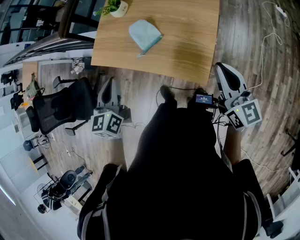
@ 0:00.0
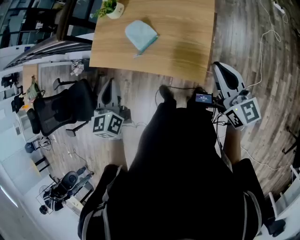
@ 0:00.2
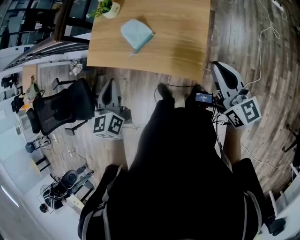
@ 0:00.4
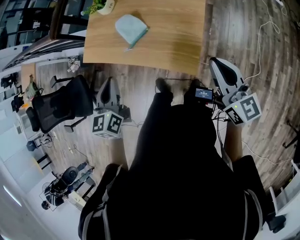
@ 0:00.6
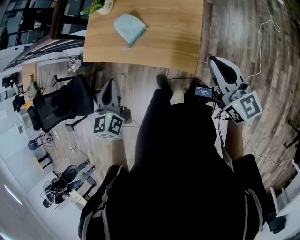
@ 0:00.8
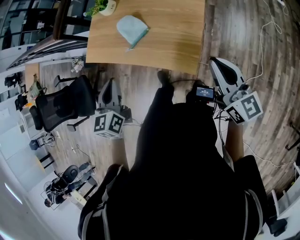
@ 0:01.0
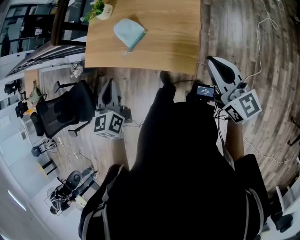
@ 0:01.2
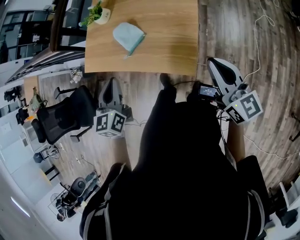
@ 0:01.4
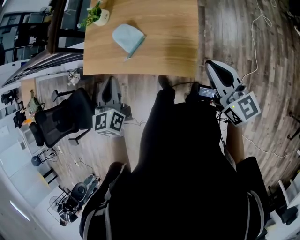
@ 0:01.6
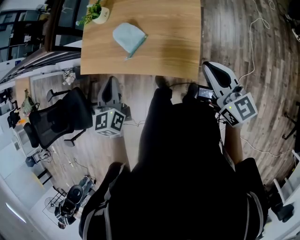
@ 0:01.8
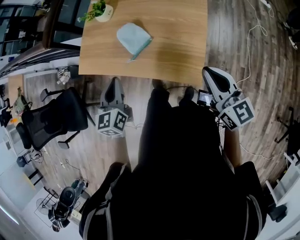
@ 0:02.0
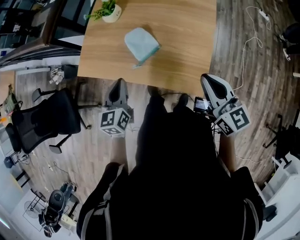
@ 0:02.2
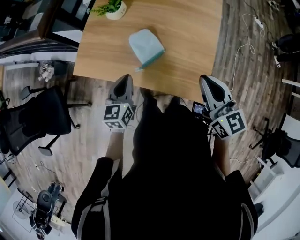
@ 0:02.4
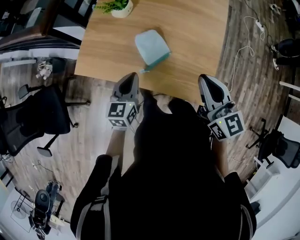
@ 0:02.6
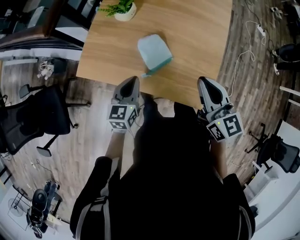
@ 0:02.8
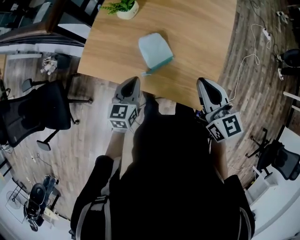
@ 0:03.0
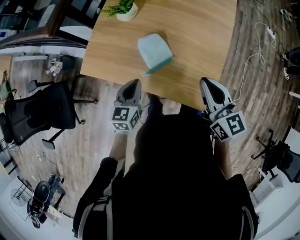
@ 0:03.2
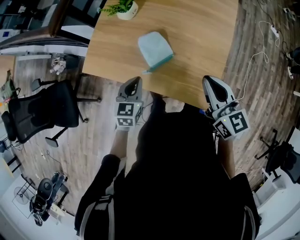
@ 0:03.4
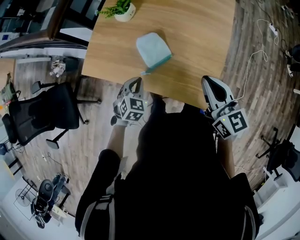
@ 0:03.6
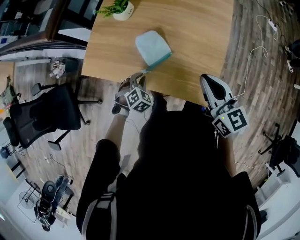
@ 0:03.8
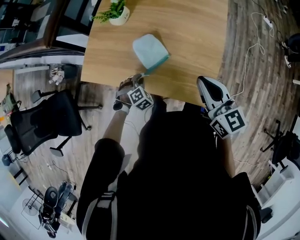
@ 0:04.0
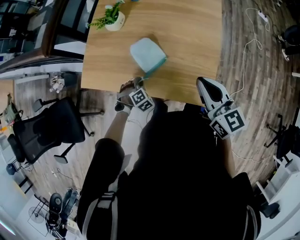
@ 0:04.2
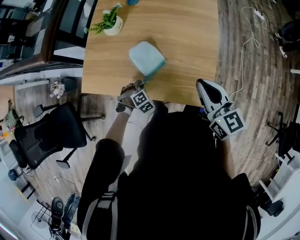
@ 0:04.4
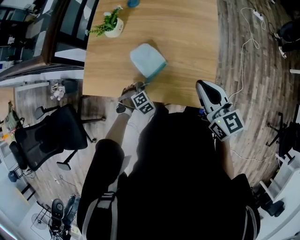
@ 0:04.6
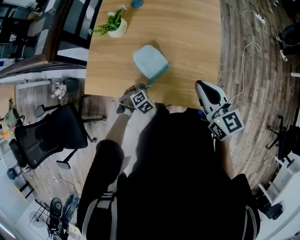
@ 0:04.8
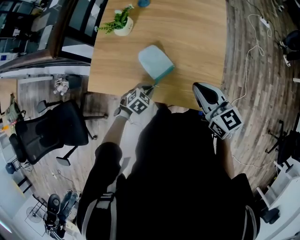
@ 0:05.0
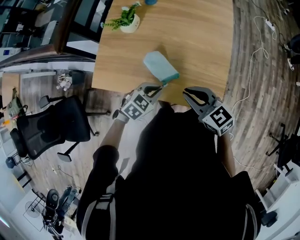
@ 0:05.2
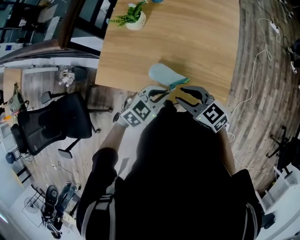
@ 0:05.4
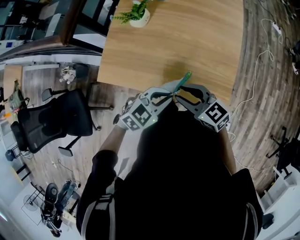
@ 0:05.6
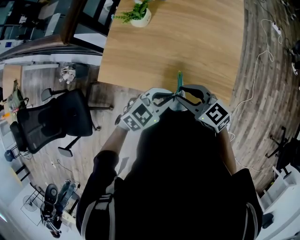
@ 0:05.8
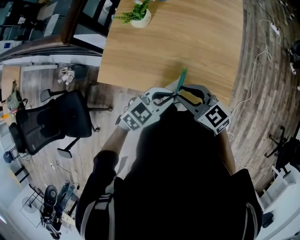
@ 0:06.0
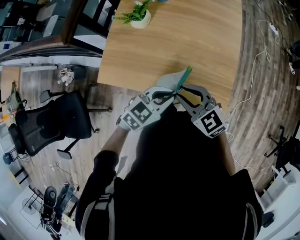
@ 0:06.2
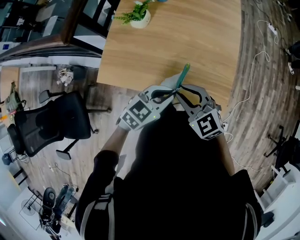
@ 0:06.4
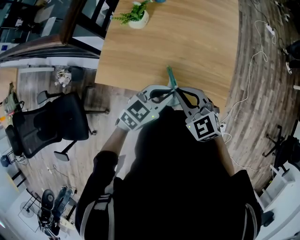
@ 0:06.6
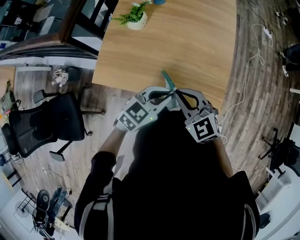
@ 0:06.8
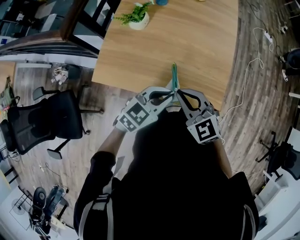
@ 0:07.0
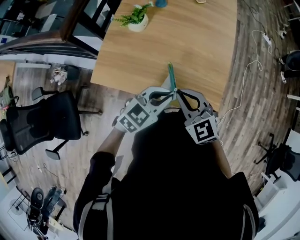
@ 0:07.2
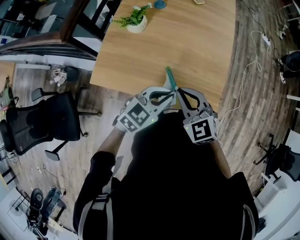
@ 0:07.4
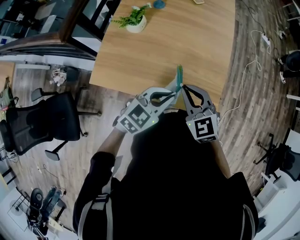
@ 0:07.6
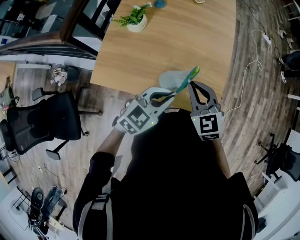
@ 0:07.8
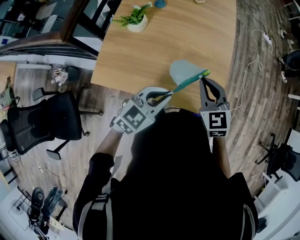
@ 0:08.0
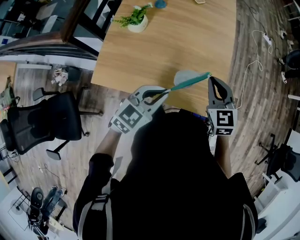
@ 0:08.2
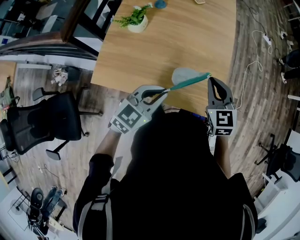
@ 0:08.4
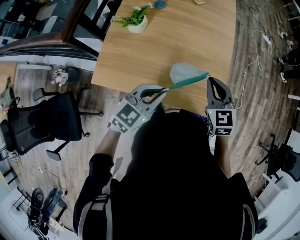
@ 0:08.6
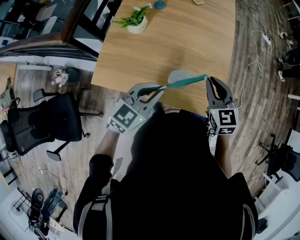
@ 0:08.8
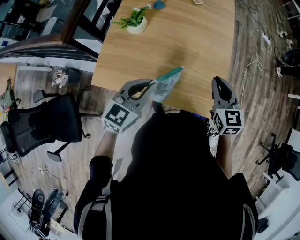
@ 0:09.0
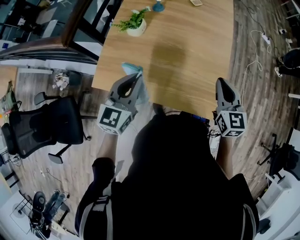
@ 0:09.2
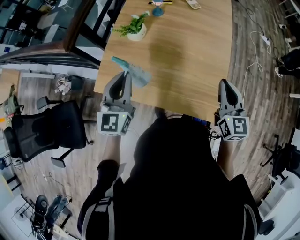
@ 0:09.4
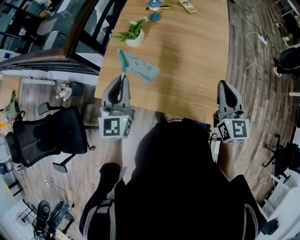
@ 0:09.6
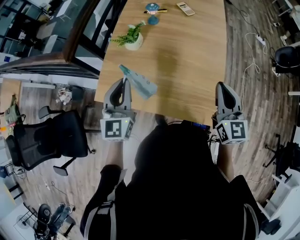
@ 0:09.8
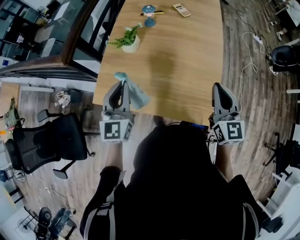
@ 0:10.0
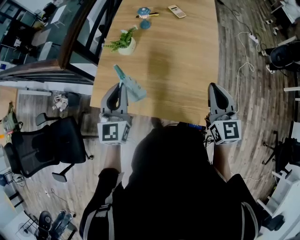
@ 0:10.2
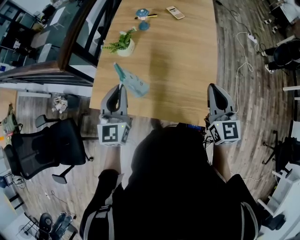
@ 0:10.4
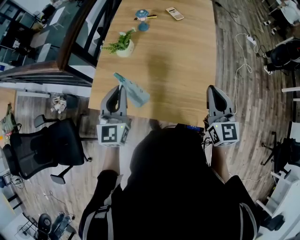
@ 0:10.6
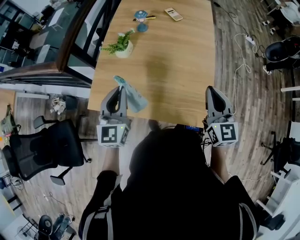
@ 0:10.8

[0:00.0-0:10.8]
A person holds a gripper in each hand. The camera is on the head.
0:00.0 to 0:01.6: The left gripper heads to the right, covering roughly 5 cm. Meanwhile the right gripper changes place by about 5 cm.
0:01.6 to 0:03.0: The right gripper travels to the left and forward by roughly 30 cm. The left gripper shifts approximately 20 cm downward, forward and to the left.
0:03.0 to 0:04.6: The left gripper shifts roughly 20 cm downward, and rolls clockwise, seen from behind, by about 70 degrees.
0:04.6 to 0:06.2: The left gripper shifts some 25 cm upward, and tips its fingers upward by roughly 40 degrees. Meanwhile the right gripper shifts by approximately 20 cm, changes its angle by about 40 degrees, and opens.
0:06.2 to 0:07.8: The right gripper moves to the right and forward, roughly 10 cm, rotates approximately 20 degrees, and closes up.
0:07.8 to 0:09.2: The right gripper travels to the right and forward by roughly 10 cm, and swivels some 20 degrees. The left gripper travels to the left by approximately 15 cm, and swivels about 30 degrees.
0:09.2 to 0:10.8: The right gripper goes some 5 cm upward.

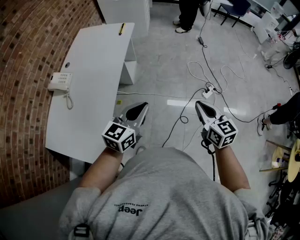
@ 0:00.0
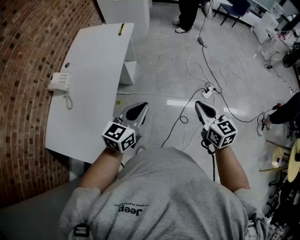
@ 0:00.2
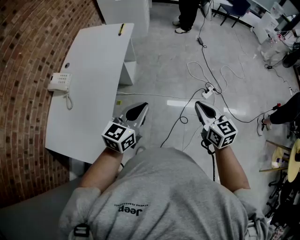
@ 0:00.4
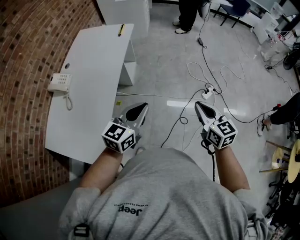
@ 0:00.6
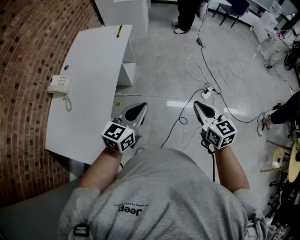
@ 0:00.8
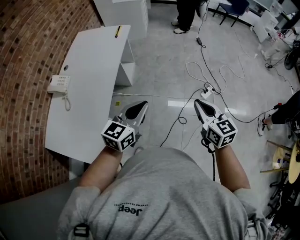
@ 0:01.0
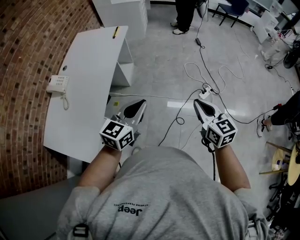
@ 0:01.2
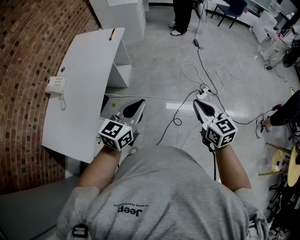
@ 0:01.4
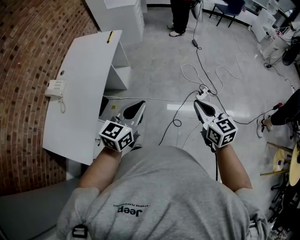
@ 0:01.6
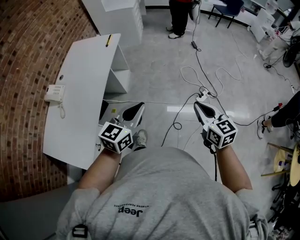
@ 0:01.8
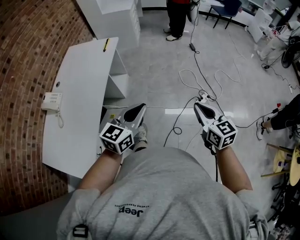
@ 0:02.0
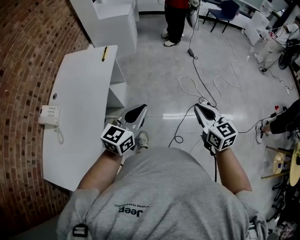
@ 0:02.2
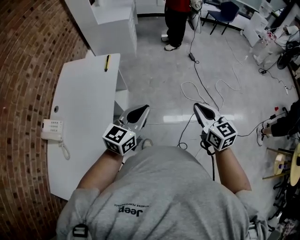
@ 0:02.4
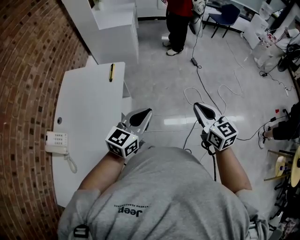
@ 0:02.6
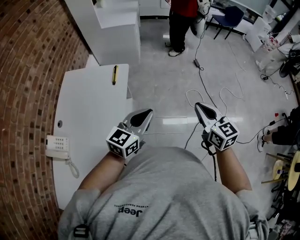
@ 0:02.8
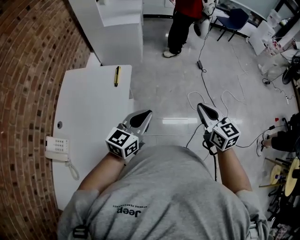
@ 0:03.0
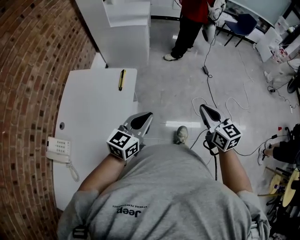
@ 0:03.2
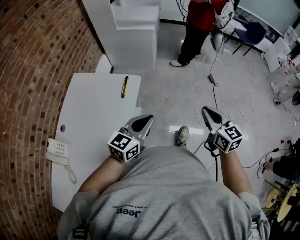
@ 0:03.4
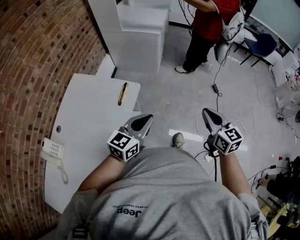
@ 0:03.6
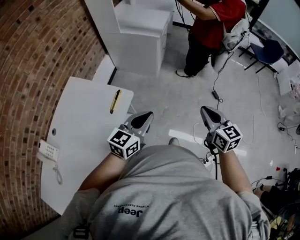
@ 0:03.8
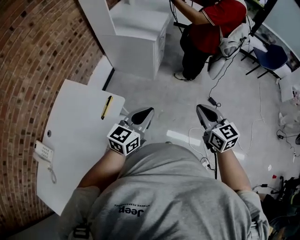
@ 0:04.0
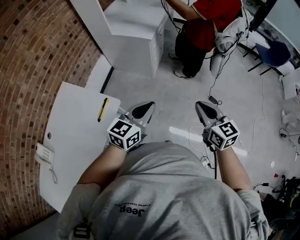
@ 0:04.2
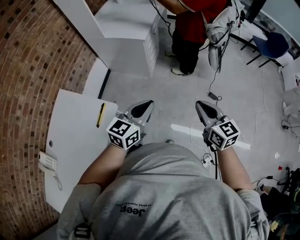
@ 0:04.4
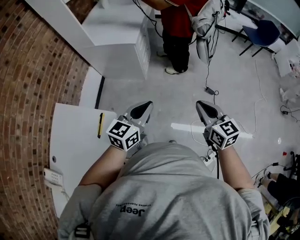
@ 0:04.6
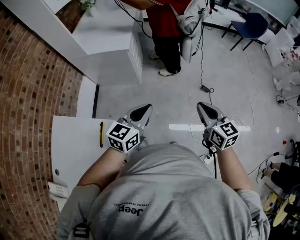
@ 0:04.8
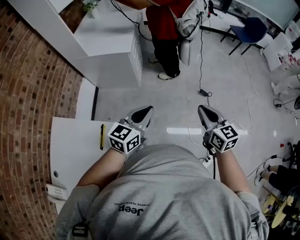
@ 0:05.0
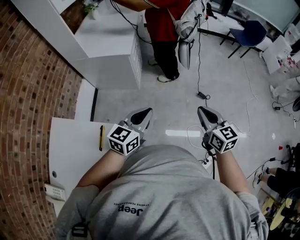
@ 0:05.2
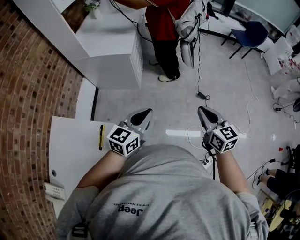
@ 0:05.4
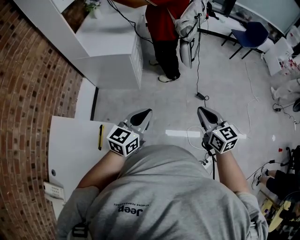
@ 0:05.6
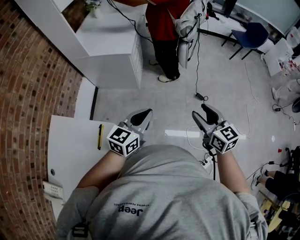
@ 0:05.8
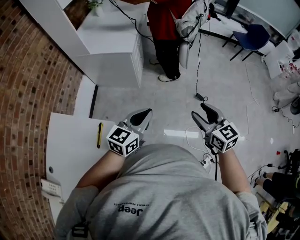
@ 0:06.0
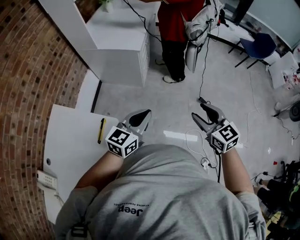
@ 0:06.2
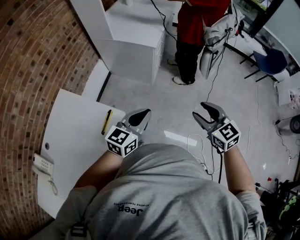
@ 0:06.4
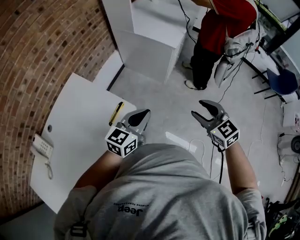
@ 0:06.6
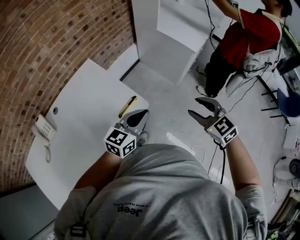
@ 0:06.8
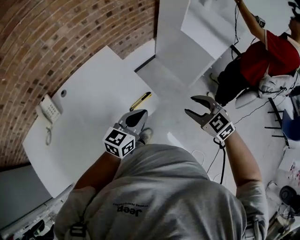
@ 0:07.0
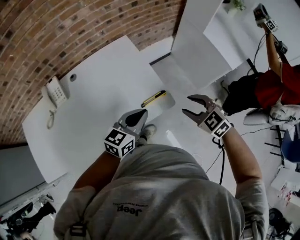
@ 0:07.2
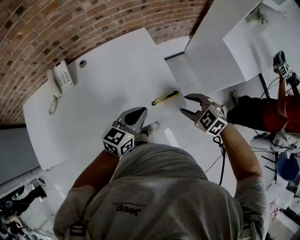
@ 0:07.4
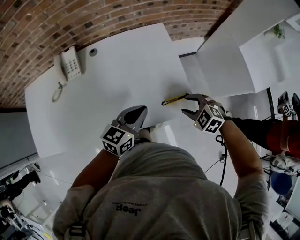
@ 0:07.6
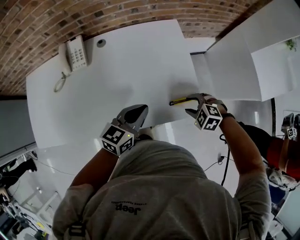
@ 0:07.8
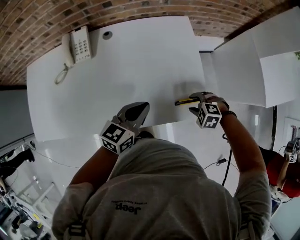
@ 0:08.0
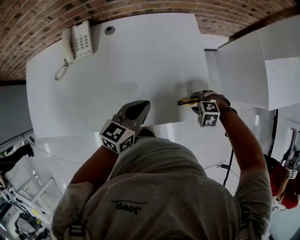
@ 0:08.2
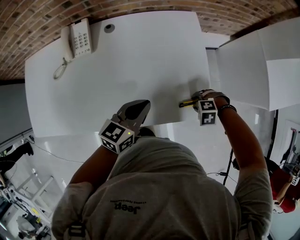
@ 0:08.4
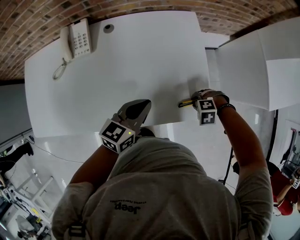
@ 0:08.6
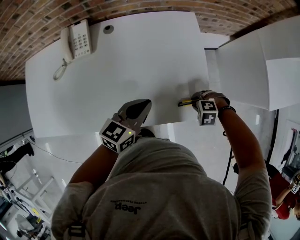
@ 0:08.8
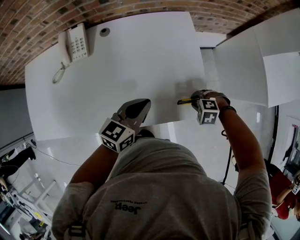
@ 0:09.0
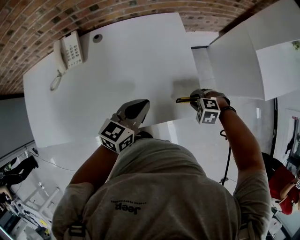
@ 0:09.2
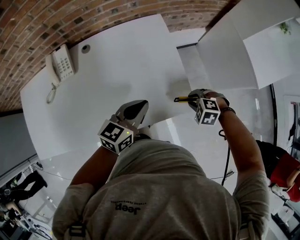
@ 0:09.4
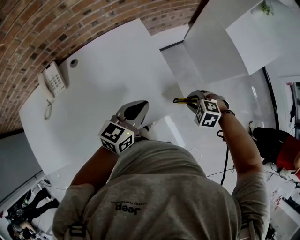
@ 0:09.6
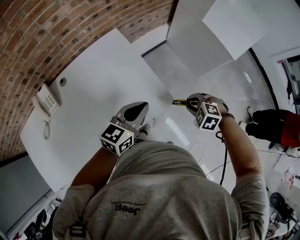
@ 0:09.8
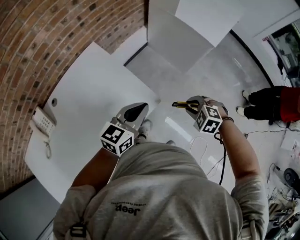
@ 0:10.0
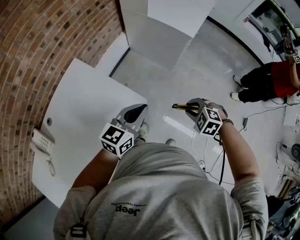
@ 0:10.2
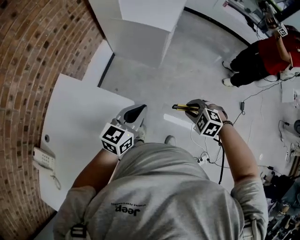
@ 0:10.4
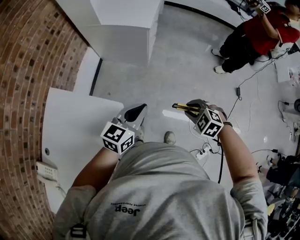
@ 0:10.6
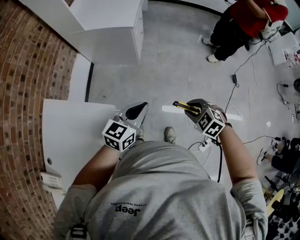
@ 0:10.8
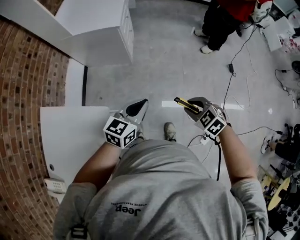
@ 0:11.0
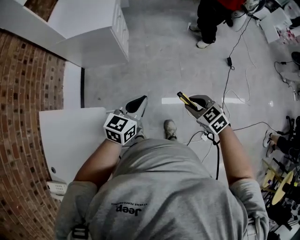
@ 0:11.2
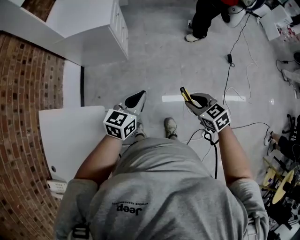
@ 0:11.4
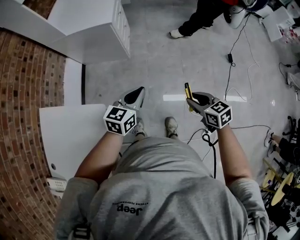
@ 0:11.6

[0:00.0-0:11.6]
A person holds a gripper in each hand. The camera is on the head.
0:00.0 to 0:01.4: The grippers both shift to the right by roughly 10 cm.
0:01.4 to 0:02.8: Both grippers move forward and to the left, about 40 cm.
0:02.8 to 0:04.4: The two grippers travel together, forward, roughly 50 cm.
0:04.4 to 0:05.8: The right gripper opens up.
0:05.8 to 0:07.2: The right gripper shifts by some 40 cm, and swivels some 90 degrees. Meanwhile the left gripper ends up approximately 35 cm from where it was, and turns by some 50 degrees.
0:07.2 to 0:08.8: The left gripper ends up about 20 cm from where it was, and swivels approximately 20 degrees, while the right gripper travels downward by approximately 25 cm, tilts its fingers roughly 40 degrees downward, and closes.
0:08.8 to 0:10.2: The left gripper ends up roughly 30 cm from where it was, and turns by approximately 50 degrees. Meanwhile the right gripper changes place by roughly 30 cm, and rolls clockwise, seen from behind, by some 60 degrees.
0:10.2 to 0:11.6: The right gripper ends up roughly 25 cm from where it was, and rotates around the line of its fingers by about 70 degrees, clockwise from behind, while the left gripper shifts by roughly 25 cm, and changes its angle by approximately 30 degrees.

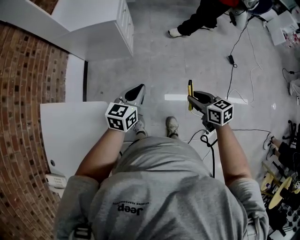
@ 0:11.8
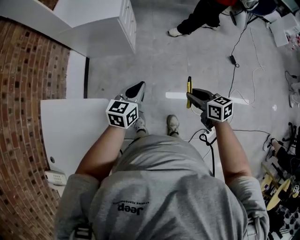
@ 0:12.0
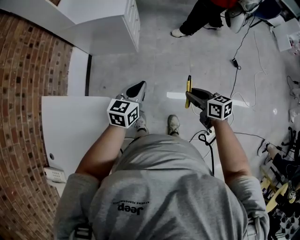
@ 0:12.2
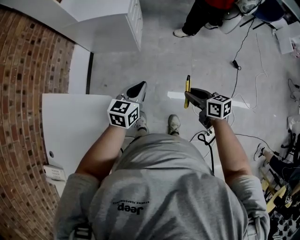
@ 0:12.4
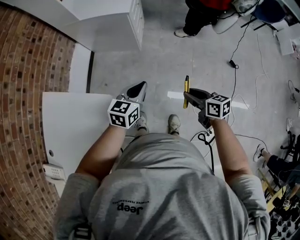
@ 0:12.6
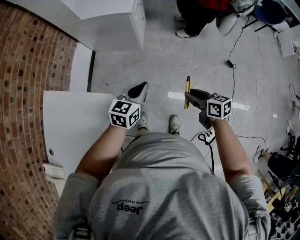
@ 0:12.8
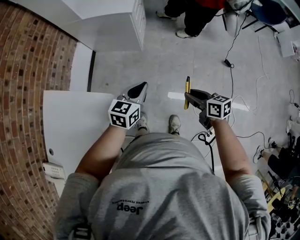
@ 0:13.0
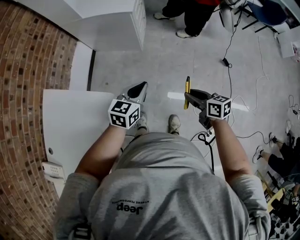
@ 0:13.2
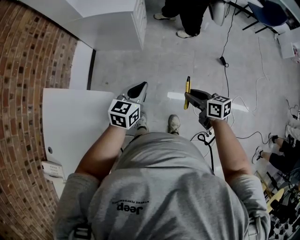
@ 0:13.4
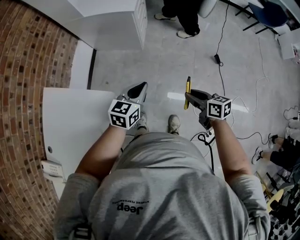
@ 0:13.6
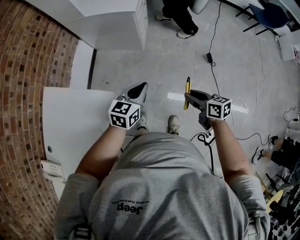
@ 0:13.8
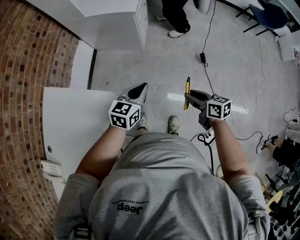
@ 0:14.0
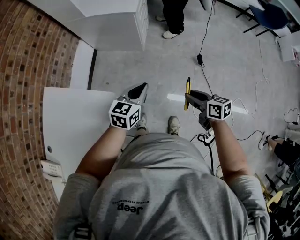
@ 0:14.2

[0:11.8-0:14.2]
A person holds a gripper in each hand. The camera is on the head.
0:11.8 to 0:13.0: The right gripper is displaced to the left by about 5 cm.
0:13.0 to 0:14.2: Both grippers stay put.
